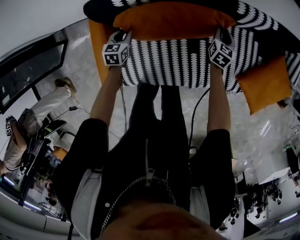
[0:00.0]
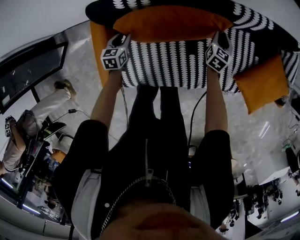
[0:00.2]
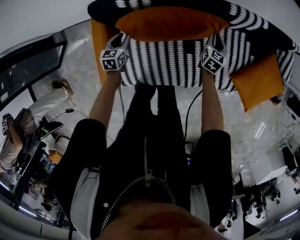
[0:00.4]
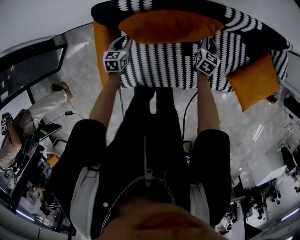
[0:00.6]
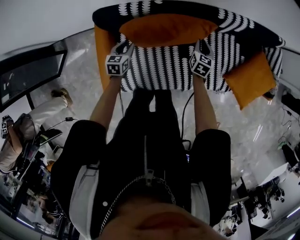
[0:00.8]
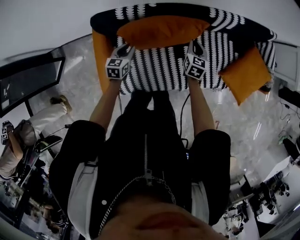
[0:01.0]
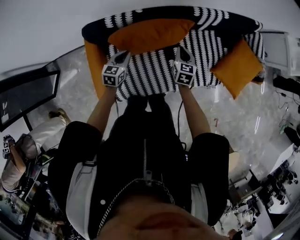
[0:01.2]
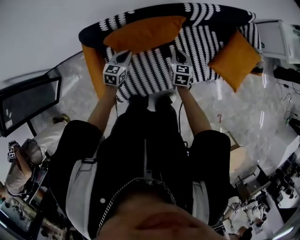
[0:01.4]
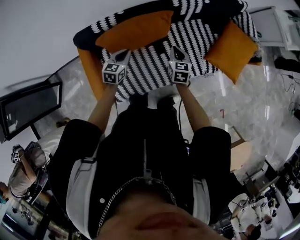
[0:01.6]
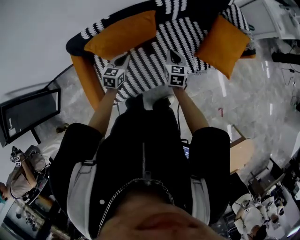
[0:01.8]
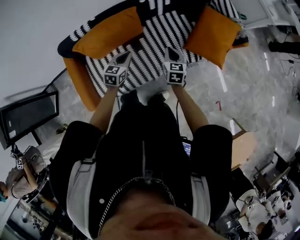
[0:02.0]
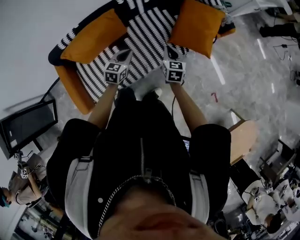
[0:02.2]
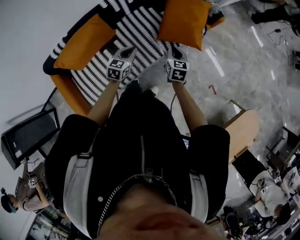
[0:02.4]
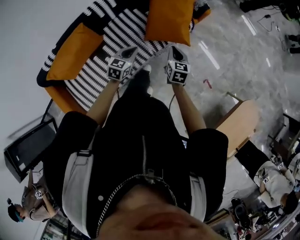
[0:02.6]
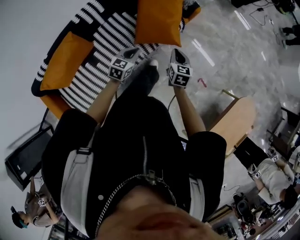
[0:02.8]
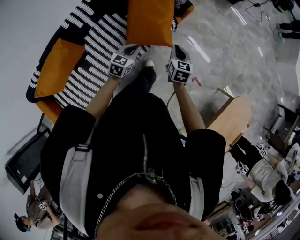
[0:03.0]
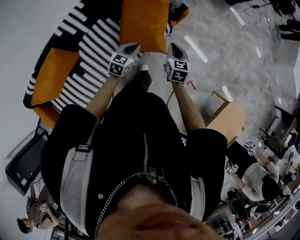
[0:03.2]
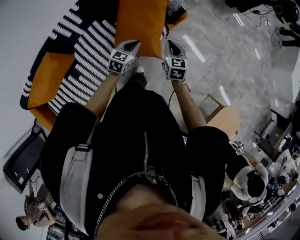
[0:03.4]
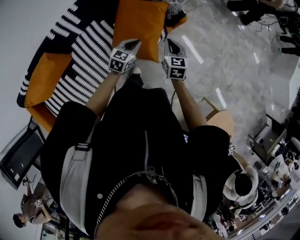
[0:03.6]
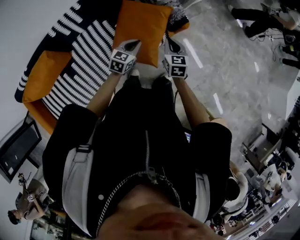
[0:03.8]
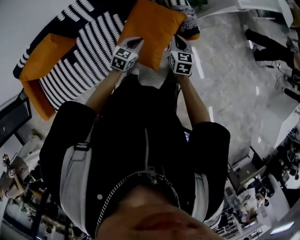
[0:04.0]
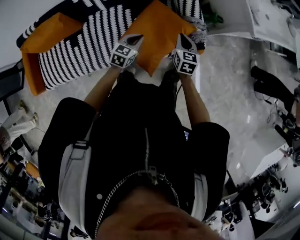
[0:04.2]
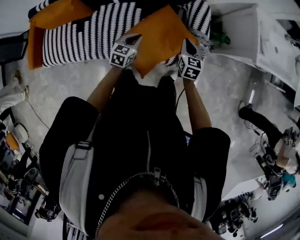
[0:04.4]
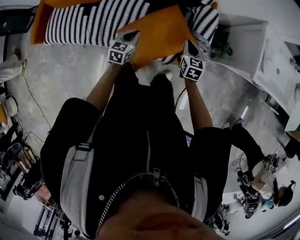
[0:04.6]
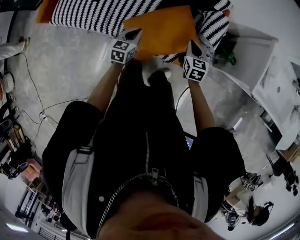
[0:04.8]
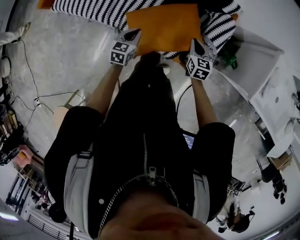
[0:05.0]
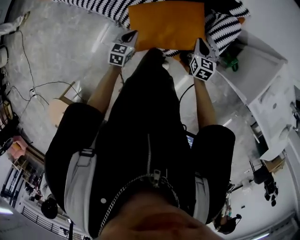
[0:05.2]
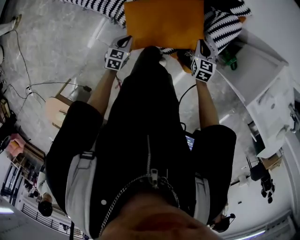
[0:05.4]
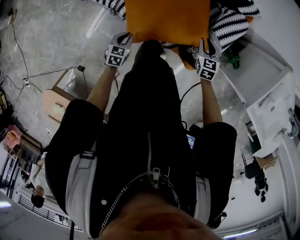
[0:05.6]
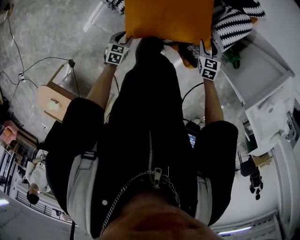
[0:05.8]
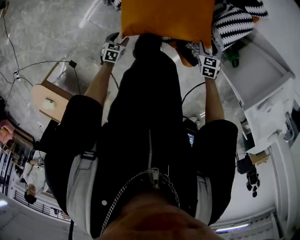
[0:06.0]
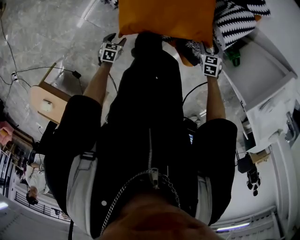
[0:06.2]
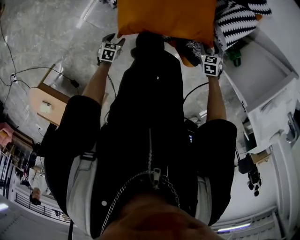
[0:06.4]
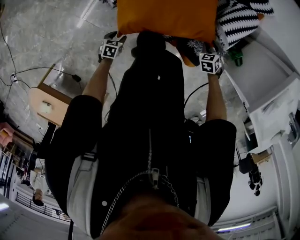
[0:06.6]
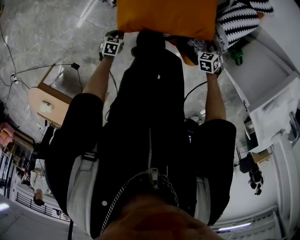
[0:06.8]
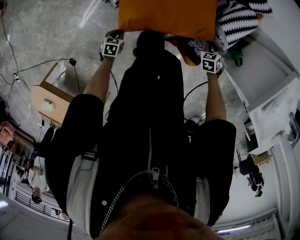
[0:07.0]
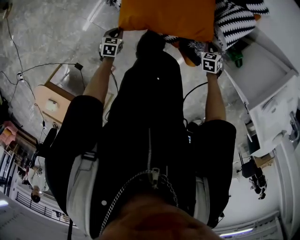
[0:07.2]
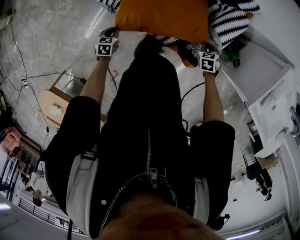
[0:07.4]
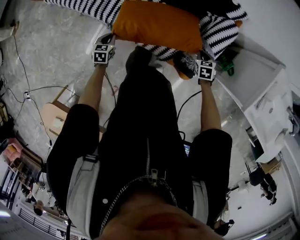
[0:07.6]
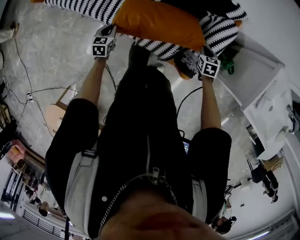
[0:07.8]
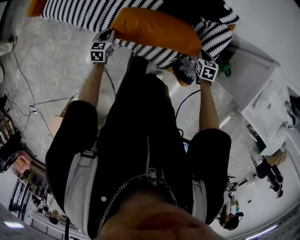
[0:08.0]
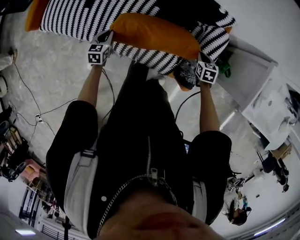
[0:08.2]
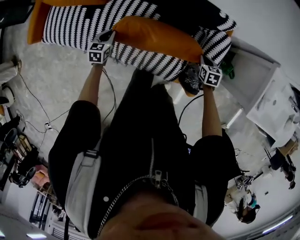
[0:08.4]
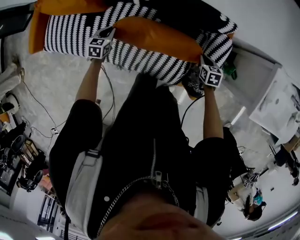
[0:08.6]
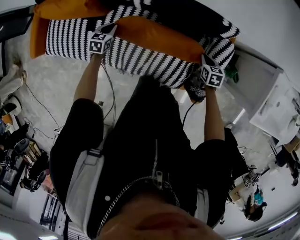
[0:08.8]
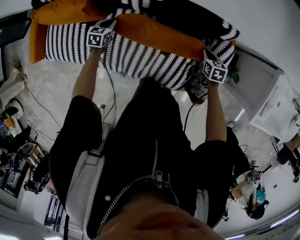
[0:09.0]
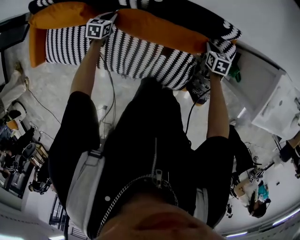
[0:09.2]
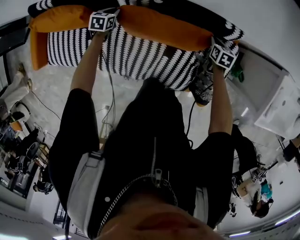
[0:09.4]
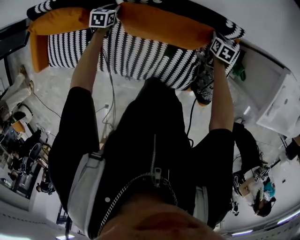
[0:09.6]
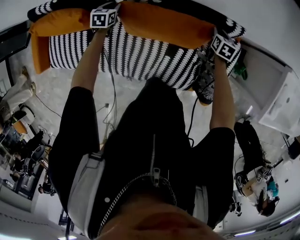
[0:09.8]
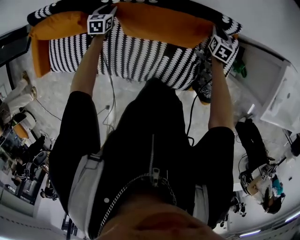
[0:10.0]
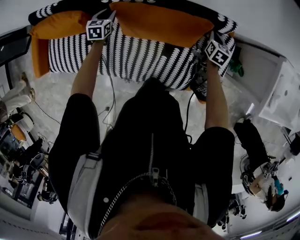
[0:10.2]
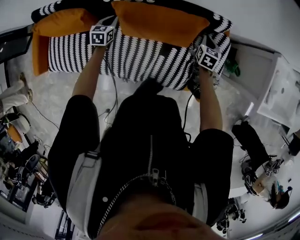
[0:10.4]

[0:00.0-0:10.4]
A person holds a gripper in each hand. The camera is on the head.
0:00.0 to 0:01.4: The right gripper is displaced backward and upward by roughly 30 cm. The left gripper is displaced upward and to the right by approximately 25 cm, and turns by about 30 degrees.
0:01.4 to 0:03.0: The two grippers travel together, roughly 70 cm. The left gripper swivels about 40 degrees. Meanwhile the right gripper swivels roughly 40 degrees.
0:03.0 to 0:04.4: The left gripper shifts by approximately 35 cm, and changes its angle by approximately 50 degrees, while the right gripper shifts by about 50 cm, and rotates roughly 50 degrees.
0:04.4 to 0:06.0: Both grippers travel together downward, roughly 30 cm. The right gripper changes its angle by roughly 60 degrees, and opens its fingers; the left gripper turns by roughly 50 degrees, and opens up.
0:06.0 to 0:07.4: The left gripper is displaced upward, to the left and forward by roughly 15 cm, and closes up; the right gripper moves some 10 cm downward and comes back, and closes.
0:07.4 to 0:09.0: The left gripper shifts some 60 cm forward, and rotates about 30 degrees. Meanwhile the right gripper travels forward by some 30 cm, and swivels some 40 degrees.
0:09.0 to 0:10.4: Both grippers move upward, about 5 cm. The right gripper goes forward and returns, some 15 cm each way, and rotates about 30 degrees. Meanwhile the left gripper travels forward and back again, approximately 15 cm each way.

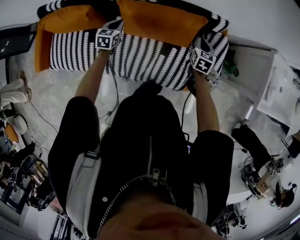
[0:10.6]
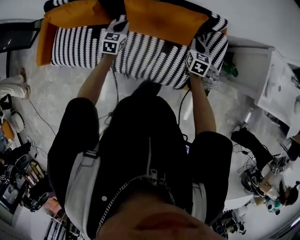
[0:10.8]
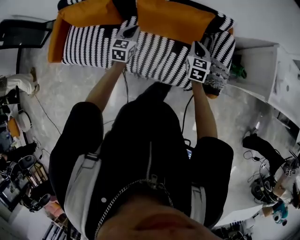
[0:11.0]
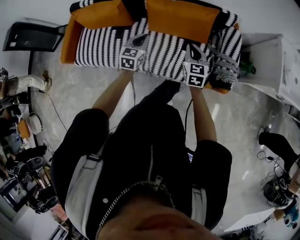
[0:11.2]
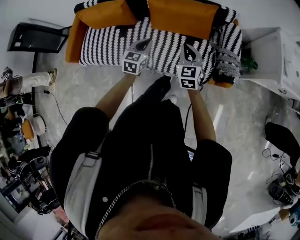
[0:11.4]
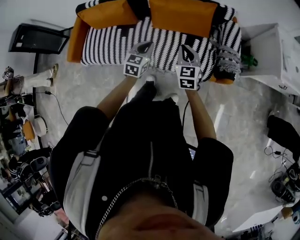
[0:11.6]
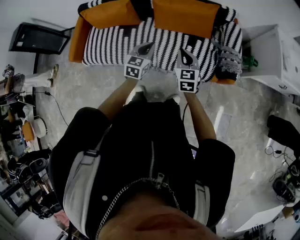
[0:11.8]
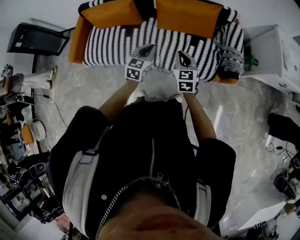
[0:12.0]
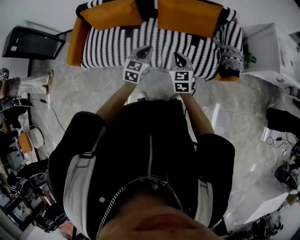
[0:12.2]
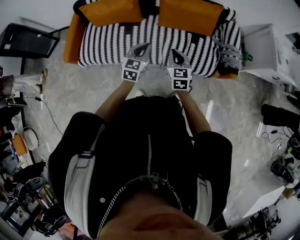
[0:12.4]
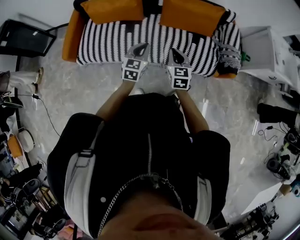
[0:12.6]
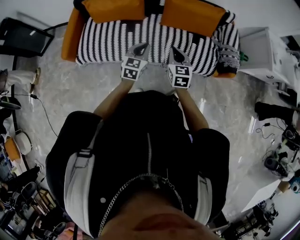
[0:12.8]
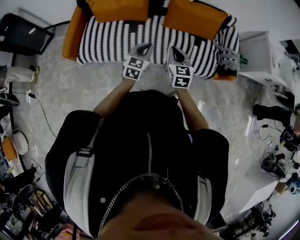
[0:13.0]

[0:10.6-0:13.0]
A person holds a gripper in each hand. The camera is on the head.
0:10.6 to 0:11.8: The right gripper moves backward and to the left, approximately 40 cm, and rotates approximately 20 degrees; the left gripper heads backward, covering roughly 40 cm.
0:11.8 to 0:13.0: Both grippers move to the left, roughly 25 cm.

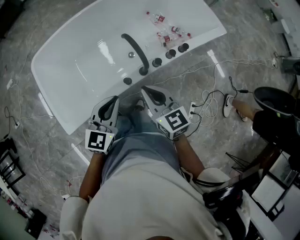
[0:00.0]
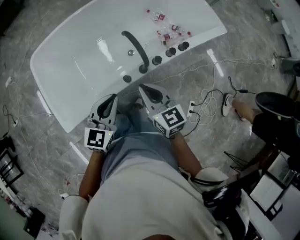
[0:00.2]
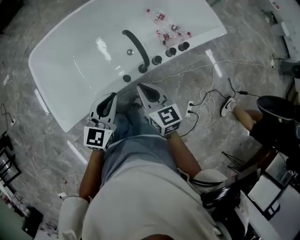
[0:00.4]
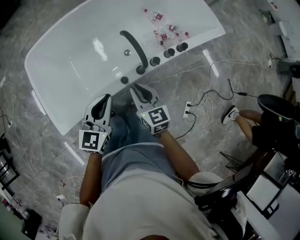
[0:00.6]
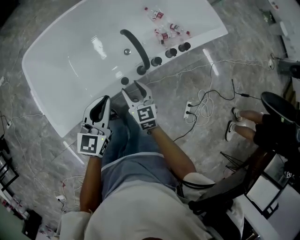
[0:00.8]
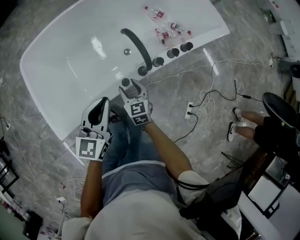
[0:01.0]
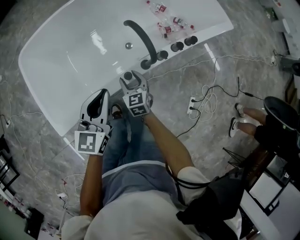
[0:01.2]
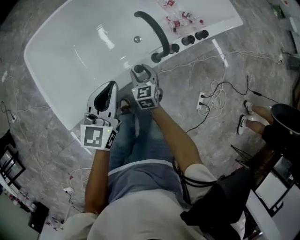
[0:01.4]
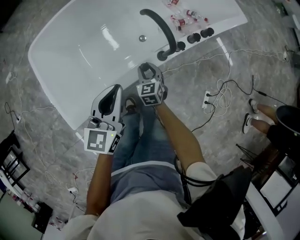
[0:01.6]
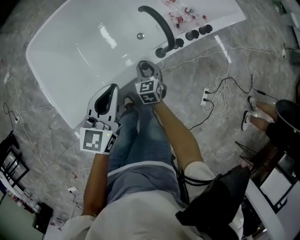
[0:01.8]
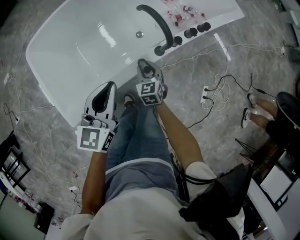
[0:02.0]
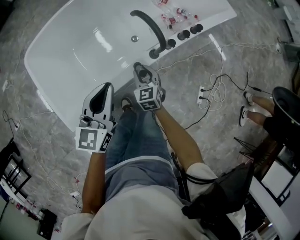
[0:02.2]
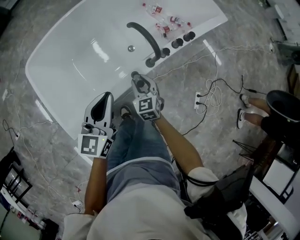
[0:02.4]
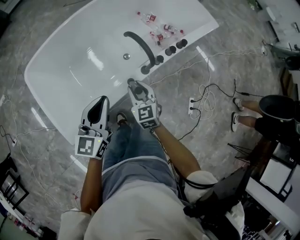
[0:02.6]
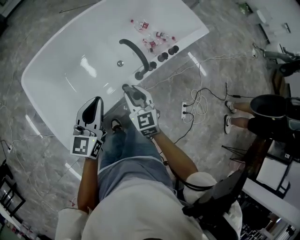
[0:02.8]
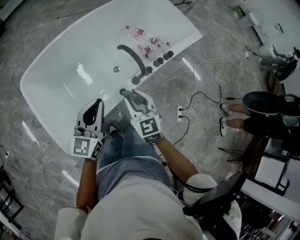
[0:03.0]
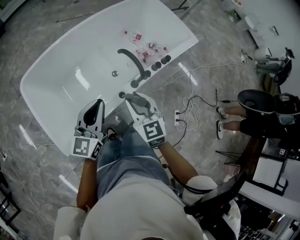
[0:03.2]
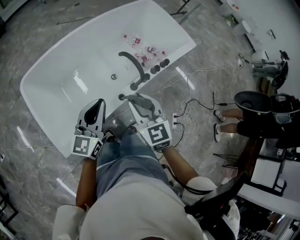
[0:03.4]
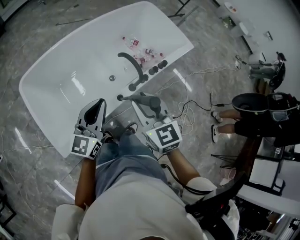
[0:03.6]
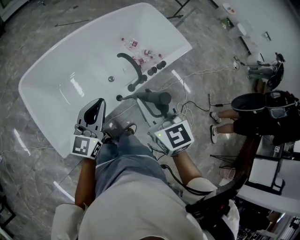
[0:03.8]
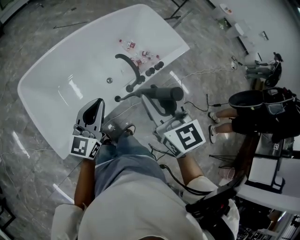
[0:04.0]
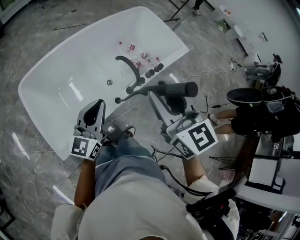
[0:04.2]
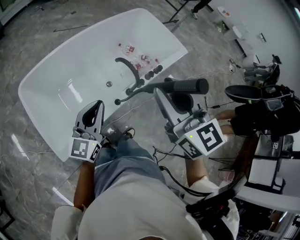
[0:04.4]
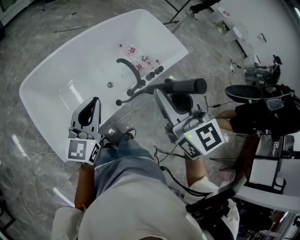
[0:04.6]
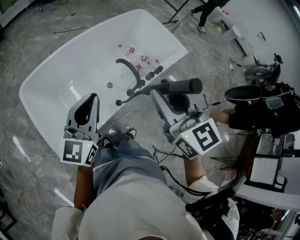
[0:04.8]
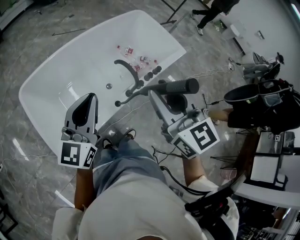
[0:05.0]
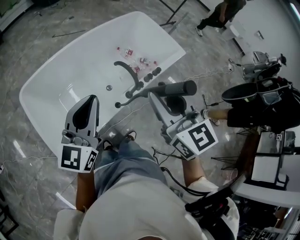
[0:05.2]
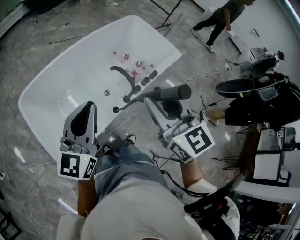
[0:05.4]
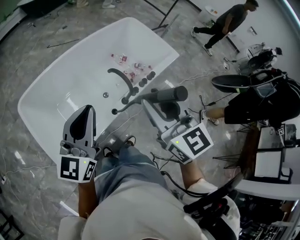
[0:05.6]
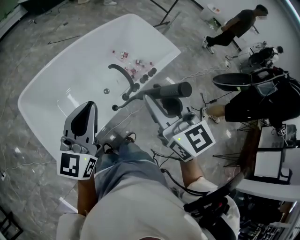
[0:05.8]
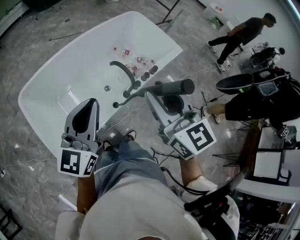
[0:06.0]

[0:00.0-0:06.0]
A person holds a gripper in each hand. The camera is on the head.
0:00.0 to 0:01.6: The left gripper moves downward and to the left, approximately 15 cm; the right gripper moves downward, approximately 35 cm, rotates approximately 30 degrees, and opens up.
0:01.6 to 0:03.0: The right gripper travels upward by approximately 40 cm; the left gripper travels upward by roughly 20 cm.
0:03.0 to 0:04.4: The left gripper shifts about 15 cm upward and backward. The right gripper heads upward, covering roughly 35 cm.
0:04.4 to 0:06.0: The left gripper is displaced upward by some 10 cm.

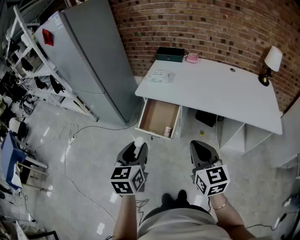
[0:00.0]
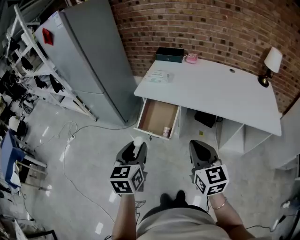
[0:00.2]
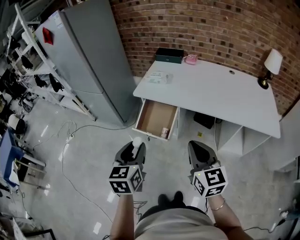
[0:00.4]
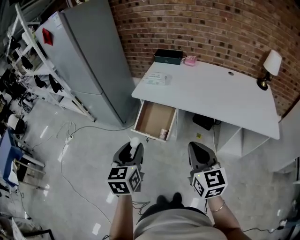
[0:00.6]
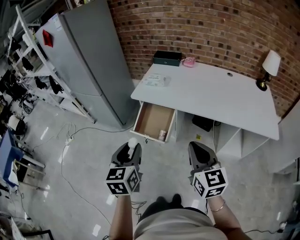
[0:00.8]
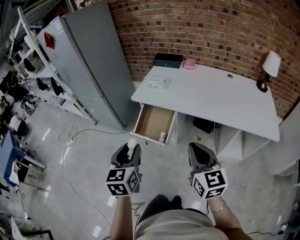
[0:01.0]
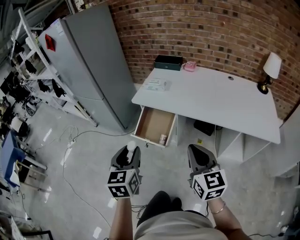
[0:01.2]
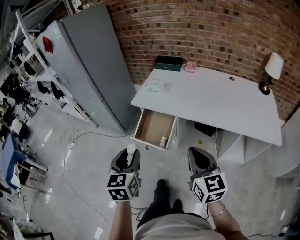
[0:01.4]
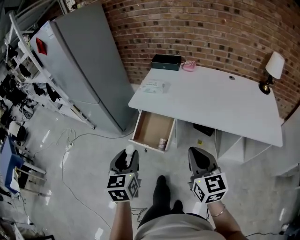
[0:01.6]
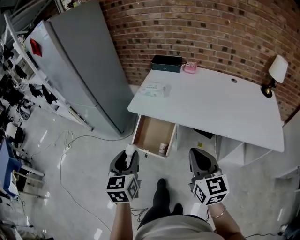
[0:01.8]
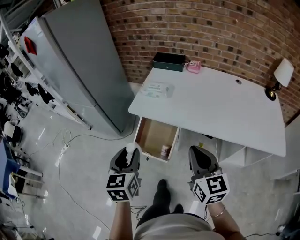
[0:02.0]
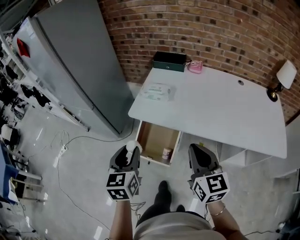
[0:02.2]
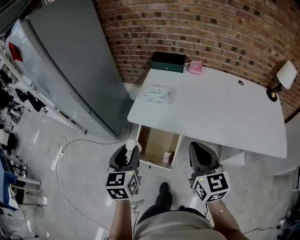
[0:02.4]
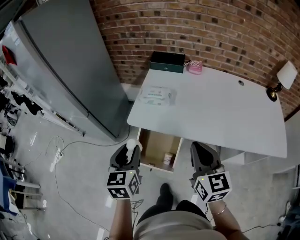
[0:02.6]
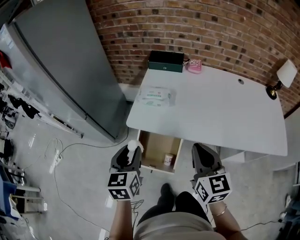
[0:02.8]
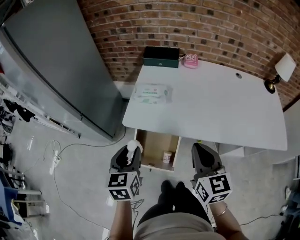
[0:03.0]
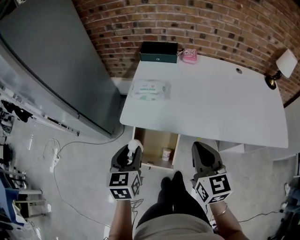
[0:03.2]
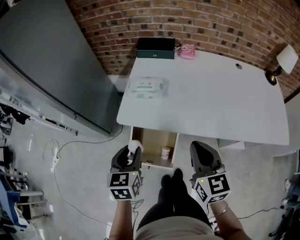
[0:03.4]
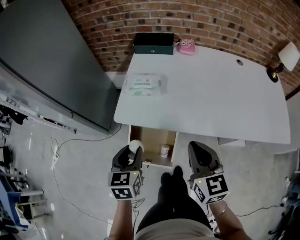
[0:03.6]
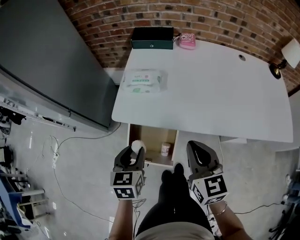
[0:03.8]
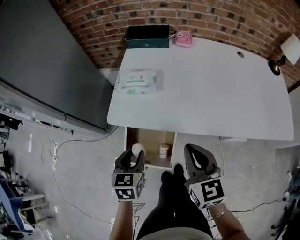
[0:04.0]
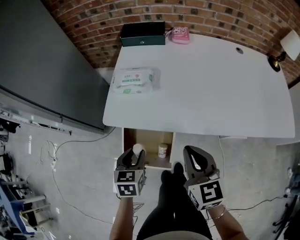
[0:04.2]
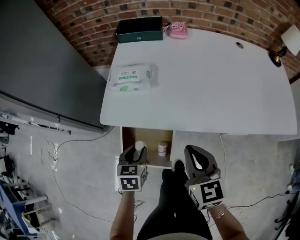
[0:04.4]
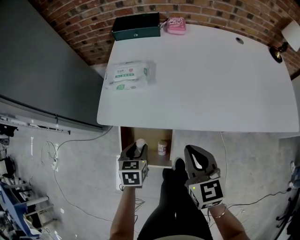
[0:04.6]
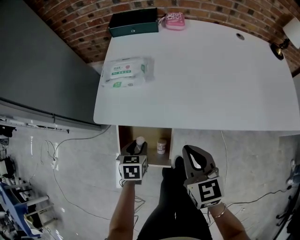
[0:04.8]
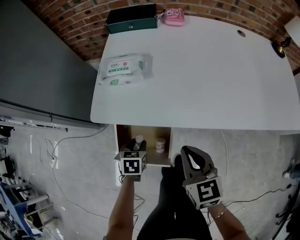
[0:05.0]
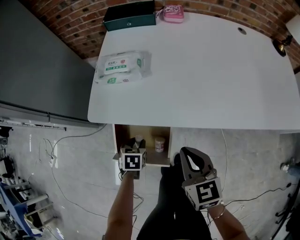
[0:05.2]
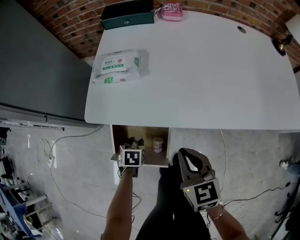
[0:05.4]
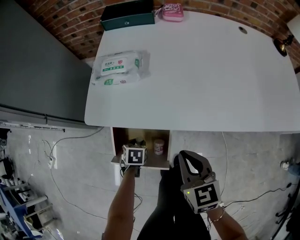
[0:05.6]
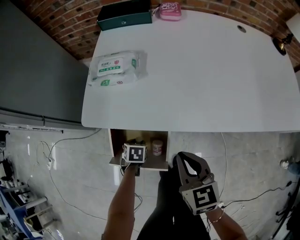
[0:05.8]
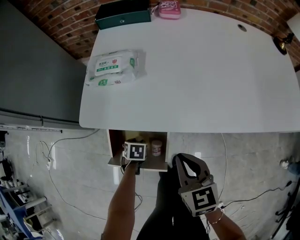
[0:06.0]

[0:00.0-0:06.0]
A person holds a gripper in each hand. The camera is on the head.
0:00.0 to 0:01.6: The right gripper moves forward and to the right, roughly 10 cm, while the left gripper heads forward, covering about 5 cm.
0:01.6 to 0:03.0: Both grippers move forward, some 30 cm.
0:03.0 to 0:04.4: The left gripper heads downward, covering approximately 20 cm, and swivels roughly 20 degrees. The right gripper is displaced downward by some 15 cm.
0:04.4 to 0:06.0: The right gripper is displaced downward by about 10 cm. Meanwhile the left gripper moves downward, approximately 25 cm, and changes its angle by some 30 degrees.
